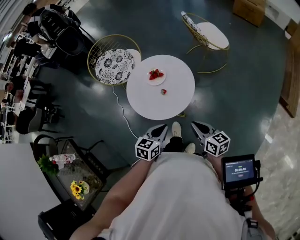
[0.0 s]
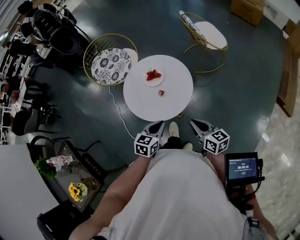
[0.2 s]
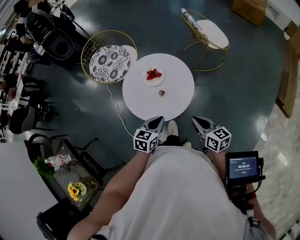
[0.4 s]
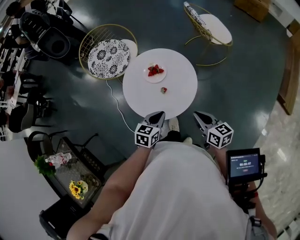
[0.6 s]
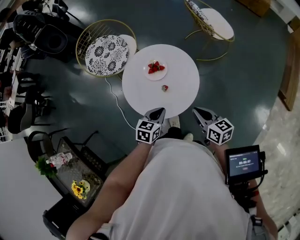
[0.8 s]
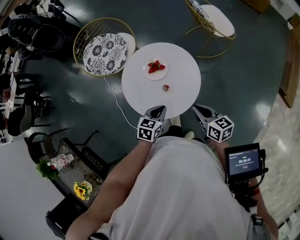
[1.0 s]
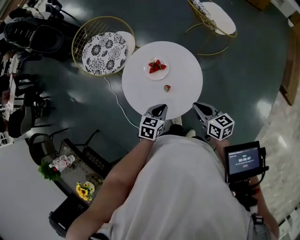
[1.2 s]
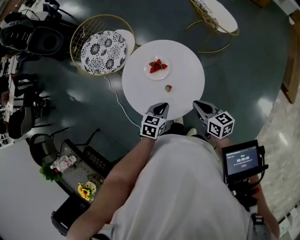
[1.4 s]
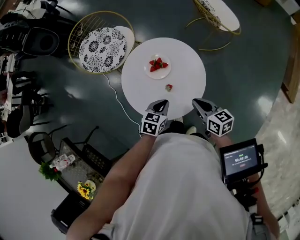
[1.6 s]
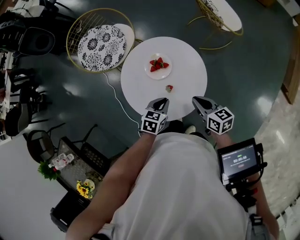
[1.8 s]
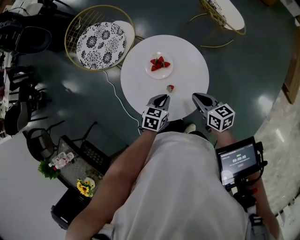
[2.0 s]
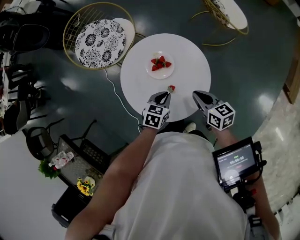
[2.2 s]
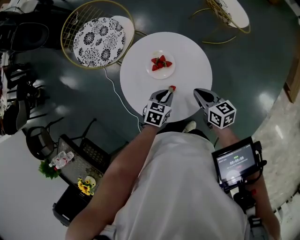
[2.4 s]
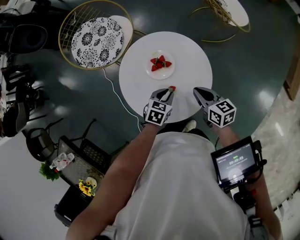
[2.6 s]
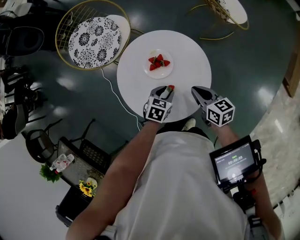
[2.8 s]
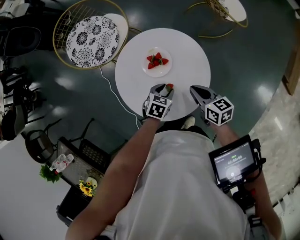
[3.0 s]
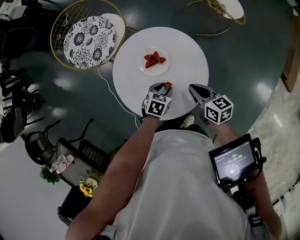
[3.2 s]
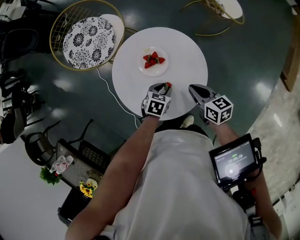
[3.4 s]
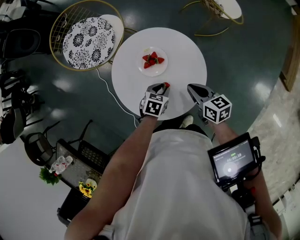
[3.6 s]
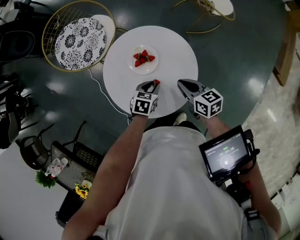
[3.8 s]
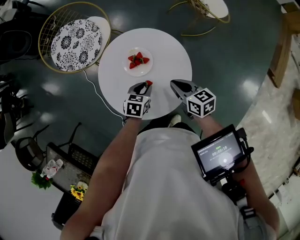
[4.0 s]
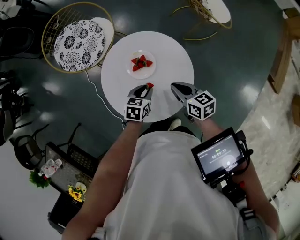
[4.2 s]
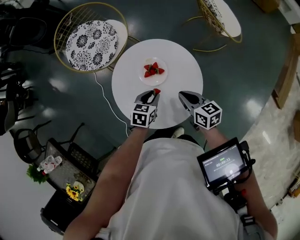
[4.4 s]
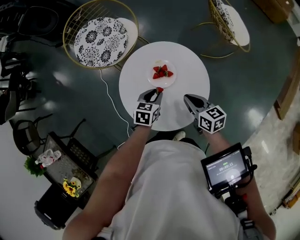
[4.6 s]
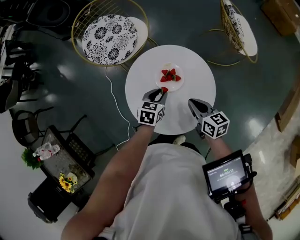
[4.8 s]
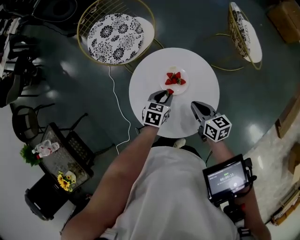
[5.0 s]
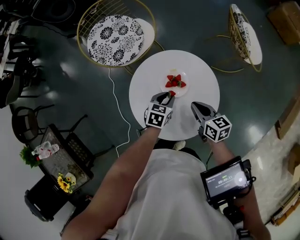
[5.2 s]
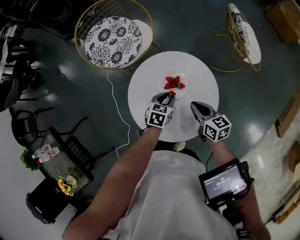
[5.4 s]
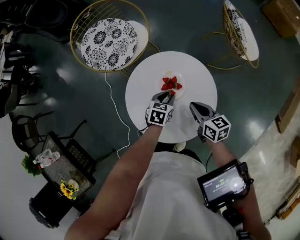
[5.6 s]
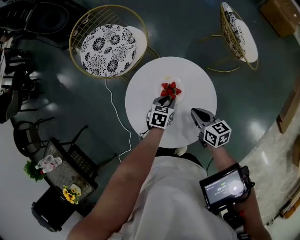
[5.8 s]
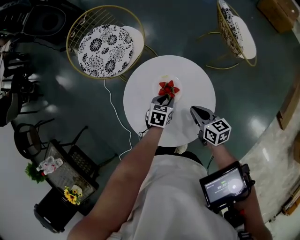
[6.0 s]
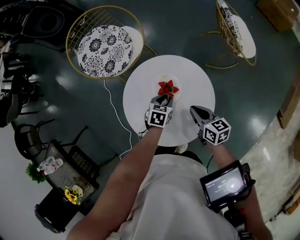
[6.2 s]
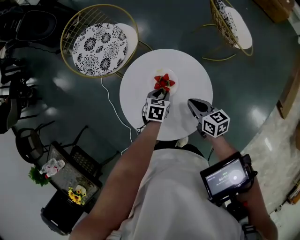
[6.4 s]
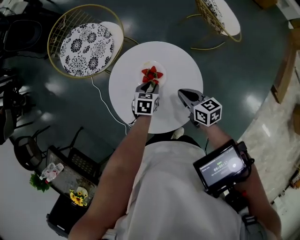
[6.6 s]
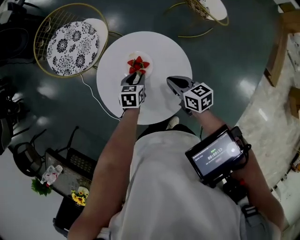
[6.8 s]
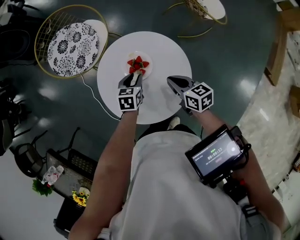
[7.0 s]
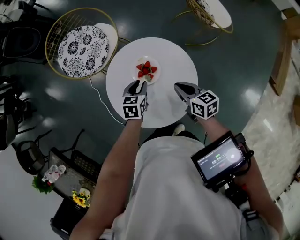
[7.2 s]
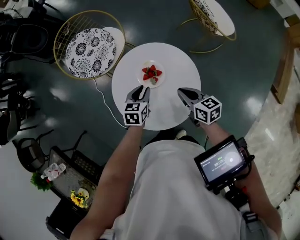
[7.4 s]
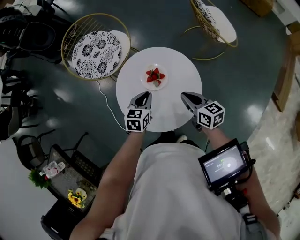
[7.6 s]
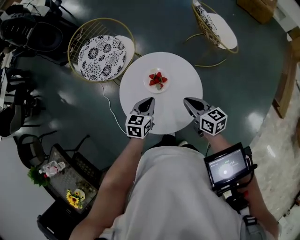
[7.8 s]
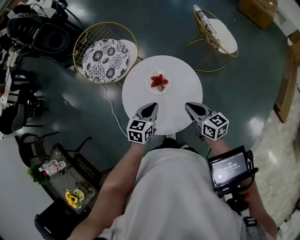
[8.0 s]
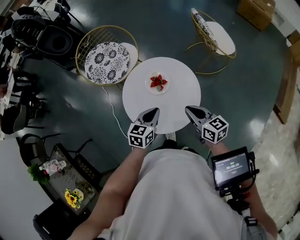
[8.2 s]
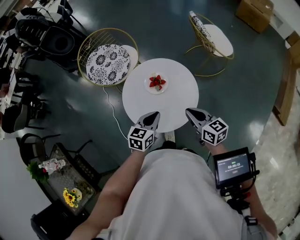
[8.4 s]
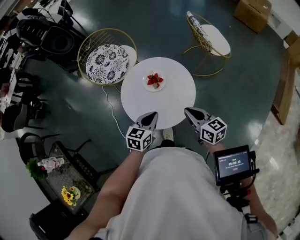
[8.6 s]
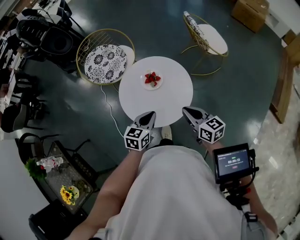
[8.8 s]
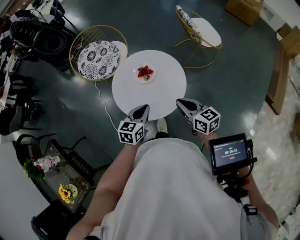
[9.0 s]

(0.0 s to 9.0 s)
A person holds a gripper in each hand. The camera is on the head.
0.0 s - 1.6 s: The right gripper goes approximately 20 cm forward; the left gripper is displaced forward and downward by some 20 cm.
1.6 s - 3.0 s: The left gripper is displaced downward and forward by roughly 10 cm, and opens up, while the right gripper is displaced forward and downward by about 10 cm.
3.0 s - 4.4 s: The left gripper shifts by roughly 5 cm.
4.4 s - 6.0 s: The left gripper is displaced forward by some 5 cm.
6.0 s - 7.6 s: The left gripper goes roughly 10 cm upward and backward. The right gripper moves upward, approximately 5 cm.
7.6 s - 9.0 s: The grippers both shift backward and upward by approximately 15 cm.

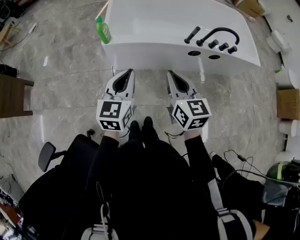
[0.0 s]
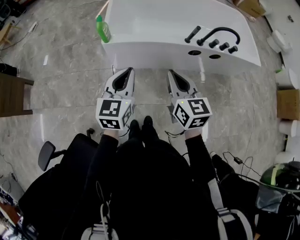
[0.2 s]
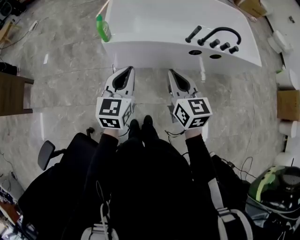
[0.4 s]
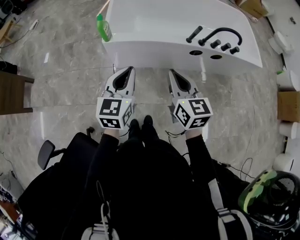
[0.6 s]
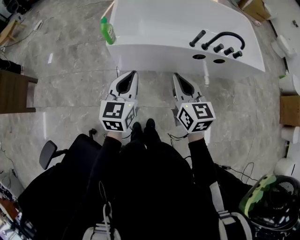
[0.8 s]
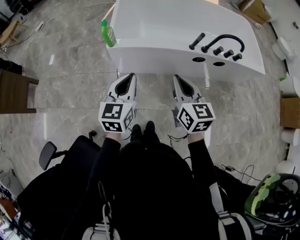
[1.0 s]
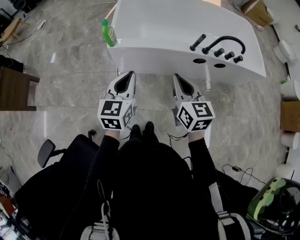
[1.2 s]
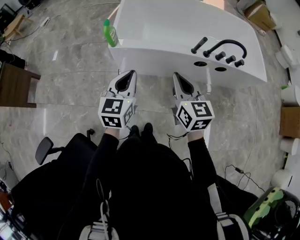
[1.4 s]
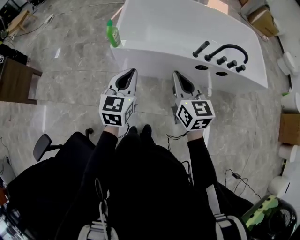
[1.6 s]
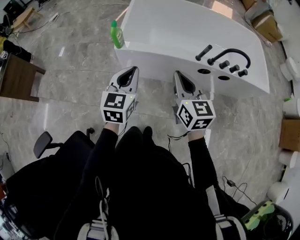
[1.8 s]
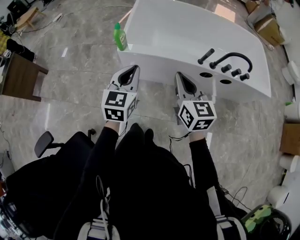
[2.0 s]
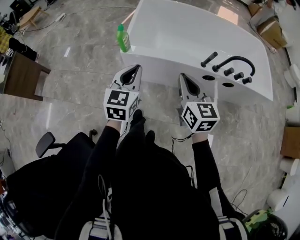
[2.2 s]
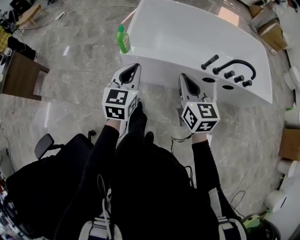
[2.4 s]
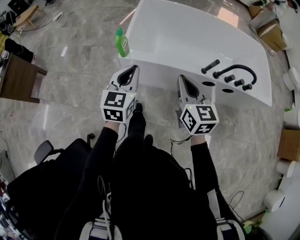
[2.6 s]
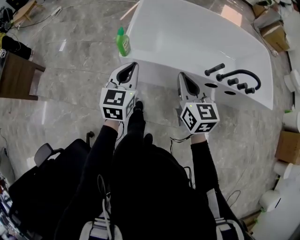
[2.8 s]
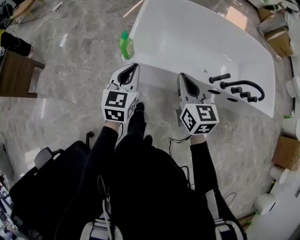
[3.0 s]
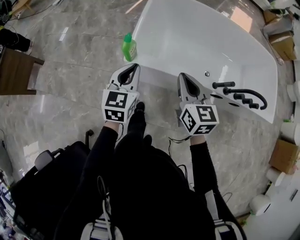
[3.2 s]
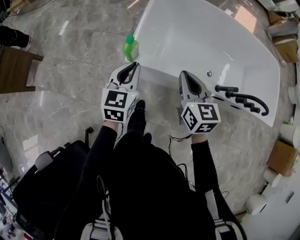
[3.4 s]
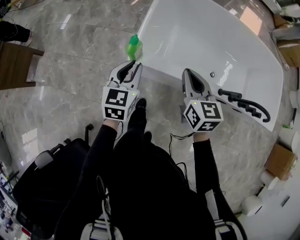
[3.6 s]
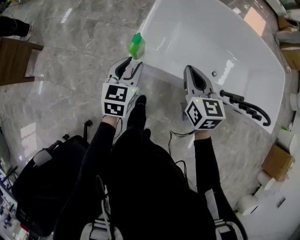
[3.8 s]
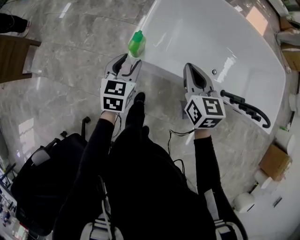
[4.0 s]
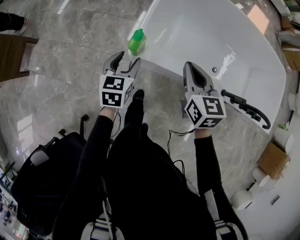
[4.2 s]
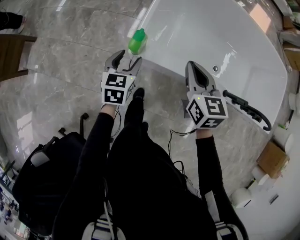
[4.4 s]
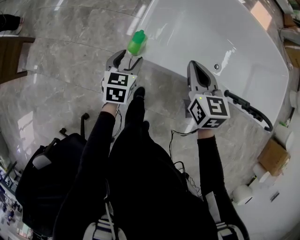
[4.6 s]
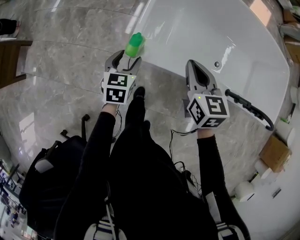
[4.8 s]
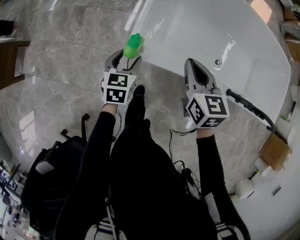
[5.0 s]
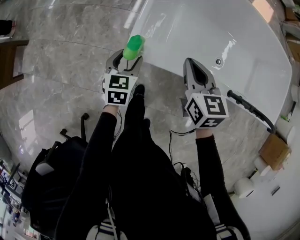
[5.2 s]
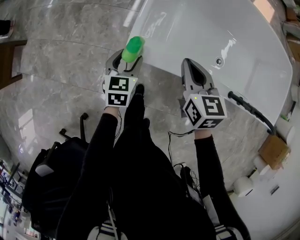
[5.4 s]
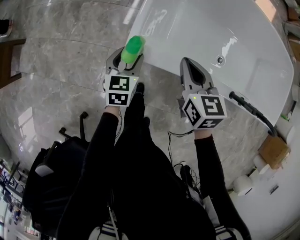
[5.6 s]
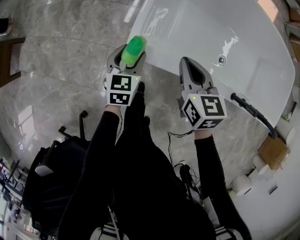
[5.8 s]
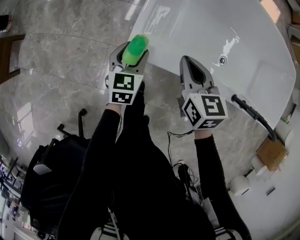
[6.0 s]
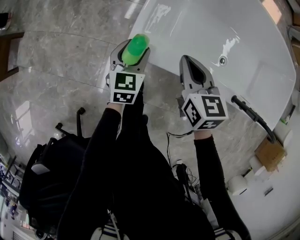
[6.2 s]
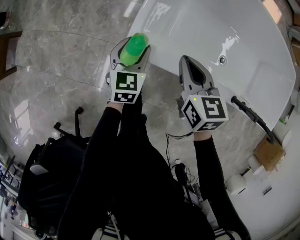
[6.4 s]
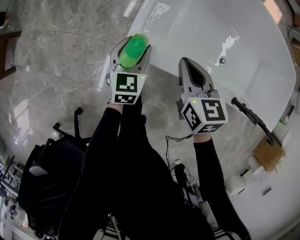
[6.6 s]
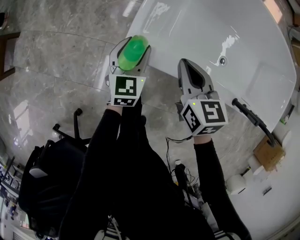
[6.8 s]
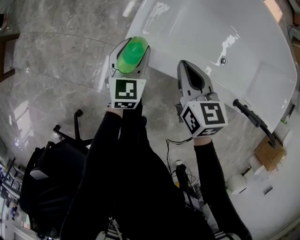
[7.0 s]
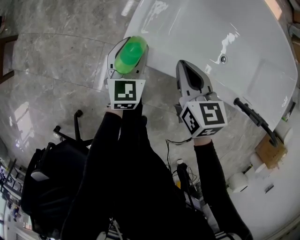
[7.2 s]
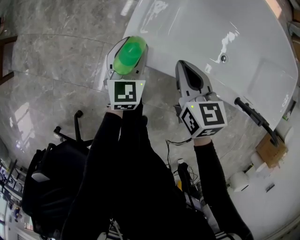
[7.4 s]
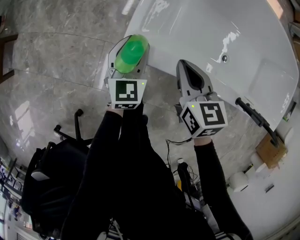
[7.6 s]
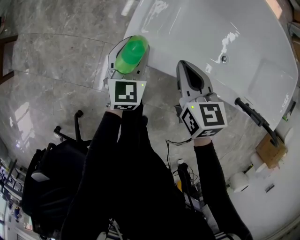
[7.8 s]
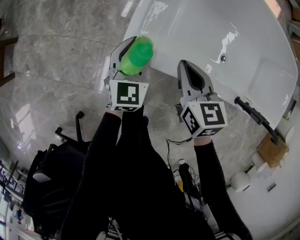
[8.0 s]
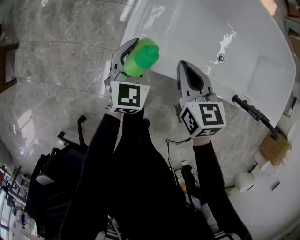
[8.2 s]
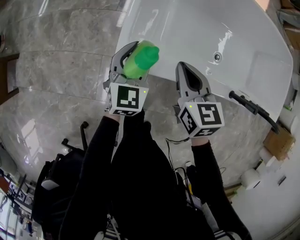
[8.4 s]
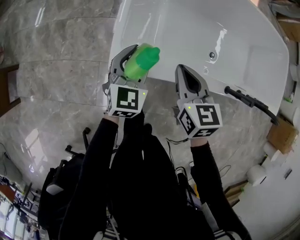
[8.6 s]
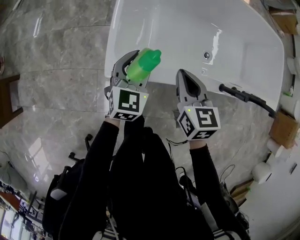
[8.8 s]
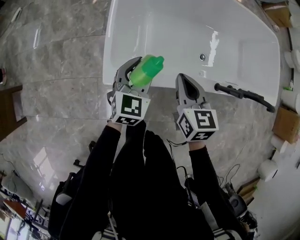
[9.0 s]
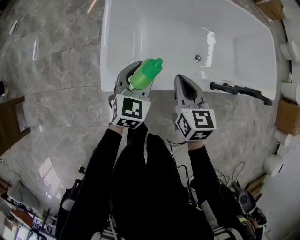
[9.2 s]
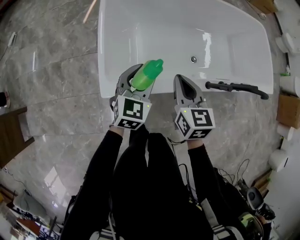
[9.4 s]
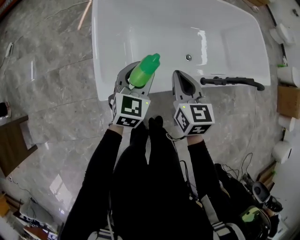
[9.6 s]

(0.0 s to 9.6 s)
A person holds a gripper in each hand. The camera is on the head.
0.0 s - 1.6 s: The right gripper moves forward, approximately 5 cm.
1.6 s - 3.2 s: The left gripper moves forward and to the left, about 20 cm; the right gripper heads forward, covering some 20 cm.
3.2 s - 4.8 s: The right gripper is displaced forward and downward by roughly 15 cm. Meanwhile the left gripper is displaced downward and forward by approximately 20 cm, changes its angle by approximately 20 degrees, and opens up.
4.8 s - 6.4 s: The right gripper travels downward by about 10 cm. Meanwhile the left gripper moves forward, roughly 5 cm.
6.4 s - 8.0 s: There are only small adjustments of the grippers.
8.0 s - 9.6 s: The left gripper changes place by roughly 25 cm, and swivels approximately 30 degrees. The right gripper goes about 15 cm upward, and rotates about 30 degrees.

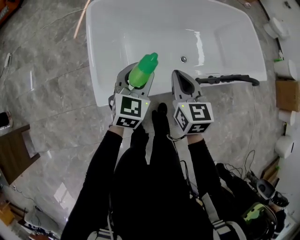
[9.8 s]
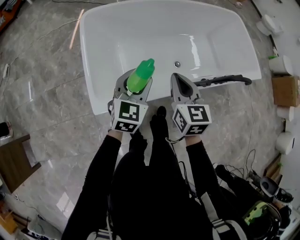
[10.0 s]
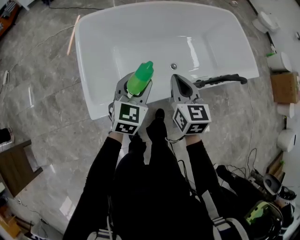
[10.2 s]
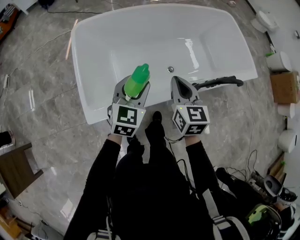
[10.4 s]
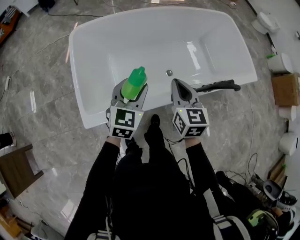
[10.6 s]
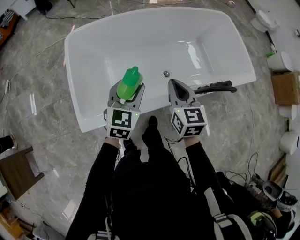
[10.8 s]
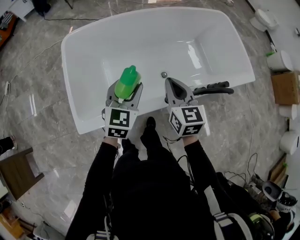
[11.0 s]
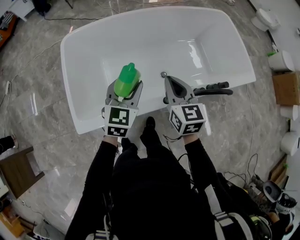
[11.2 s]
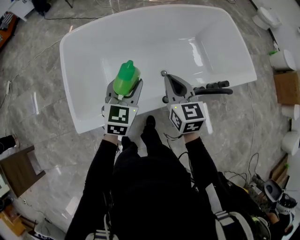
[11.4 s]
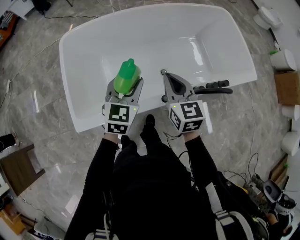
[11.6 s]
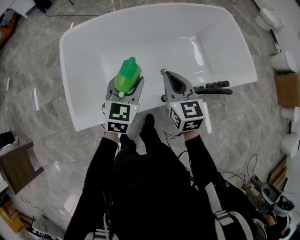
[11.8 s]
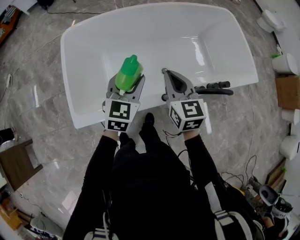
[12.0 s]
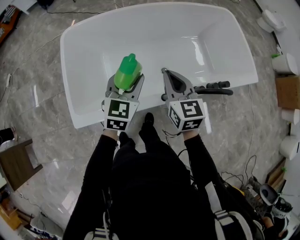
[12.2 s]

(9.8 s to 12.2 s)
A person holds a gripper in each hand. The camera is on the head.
9.8 s - 11.0 s: The grippers both shift to the right and forward by roughly 15 cm.
11.0 s - 12.2 s: The grippers make only small movements.

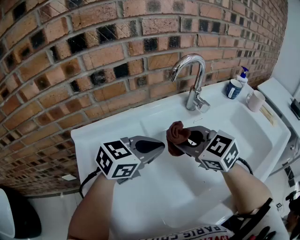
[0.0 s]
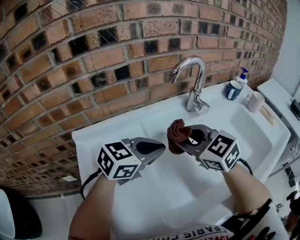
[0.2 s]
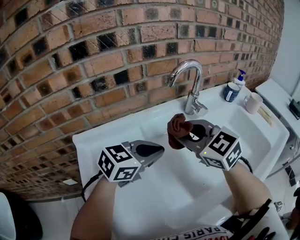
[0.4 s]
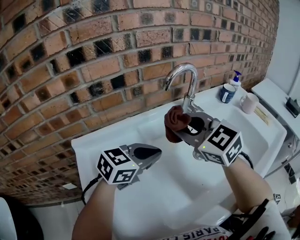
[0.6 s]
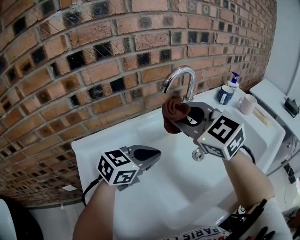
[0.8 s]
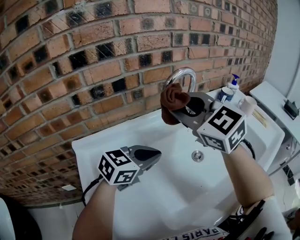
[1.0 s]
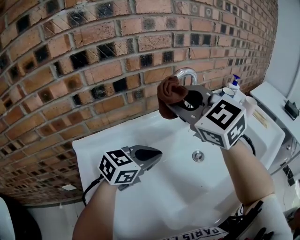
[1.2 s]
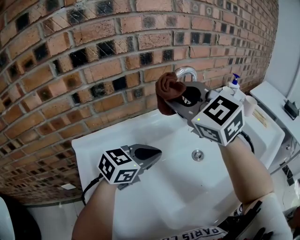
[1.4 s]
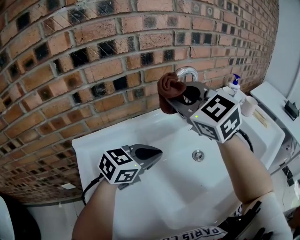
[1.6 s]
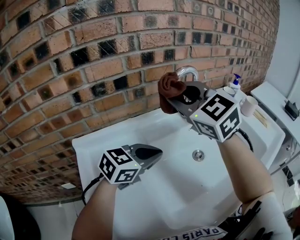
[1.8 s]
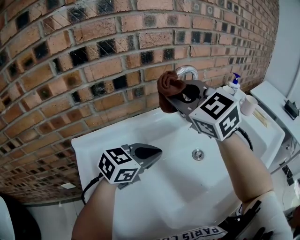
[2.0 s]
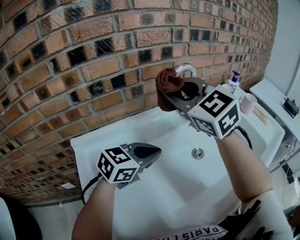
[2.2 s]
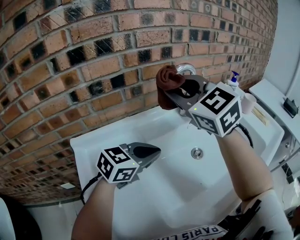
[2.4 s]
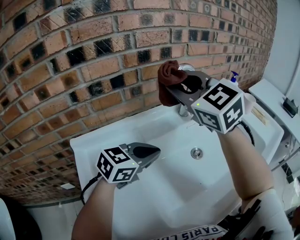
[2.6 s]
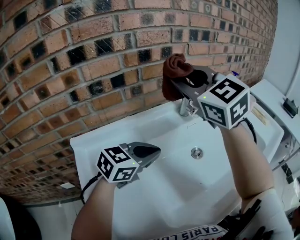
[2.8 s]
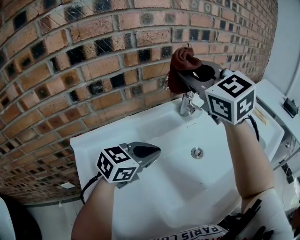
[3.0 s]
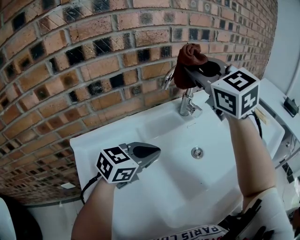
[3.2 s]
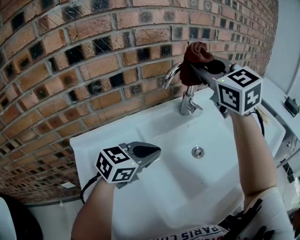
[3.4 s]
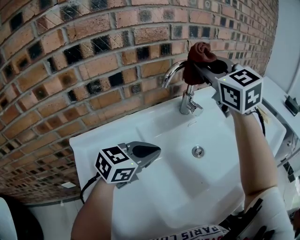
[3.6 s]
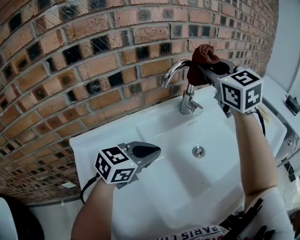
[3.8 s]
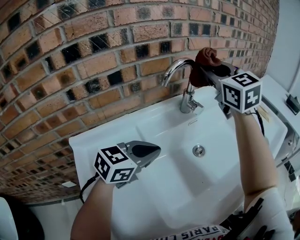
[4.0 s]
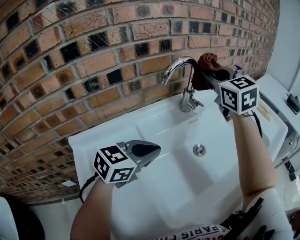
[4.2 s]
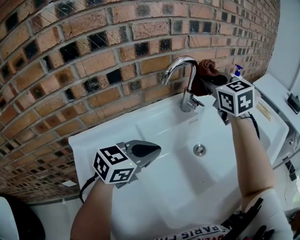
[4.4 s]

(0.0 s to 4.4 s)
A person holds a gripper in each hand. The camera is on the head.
0.0 s - 1.4 s: The right gripper heads upward, covering roughly 20 cm, and changes its angle by roughly 20 degrees.
1.4 s - 3.0 s: The right gripper changes place by about 10 cm.
3.0 s - 4.4 s: The right gripper shifts approximately 15 cm forward, downward and to the right.
